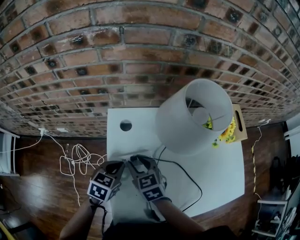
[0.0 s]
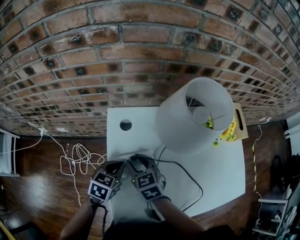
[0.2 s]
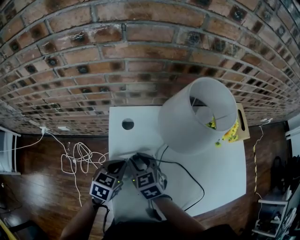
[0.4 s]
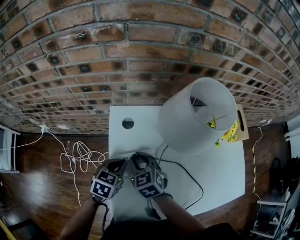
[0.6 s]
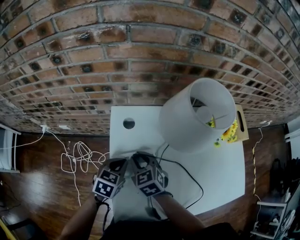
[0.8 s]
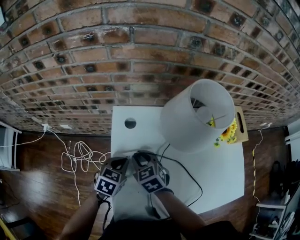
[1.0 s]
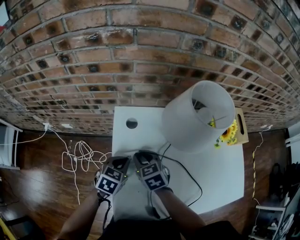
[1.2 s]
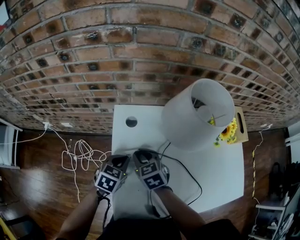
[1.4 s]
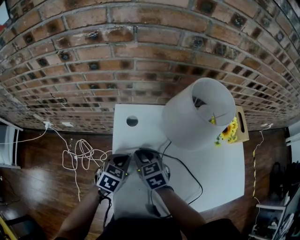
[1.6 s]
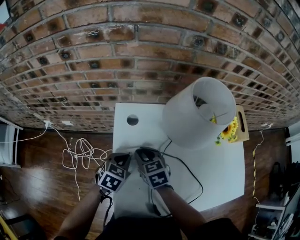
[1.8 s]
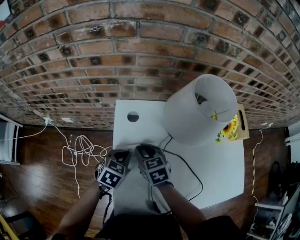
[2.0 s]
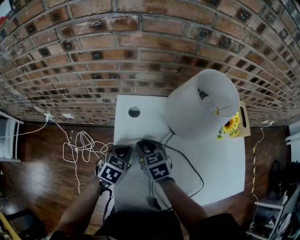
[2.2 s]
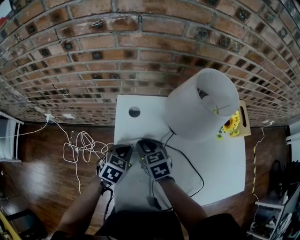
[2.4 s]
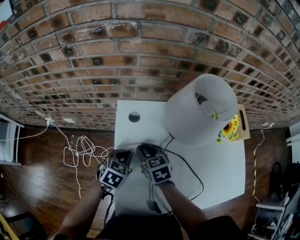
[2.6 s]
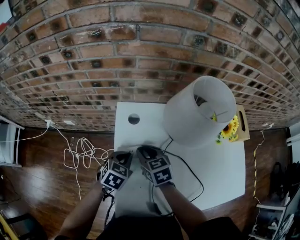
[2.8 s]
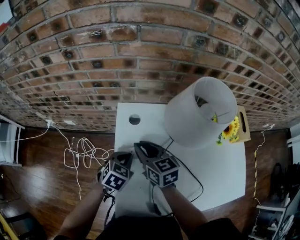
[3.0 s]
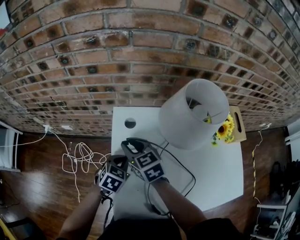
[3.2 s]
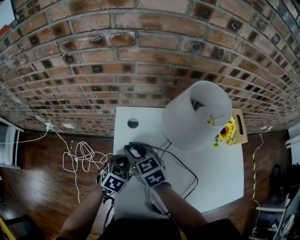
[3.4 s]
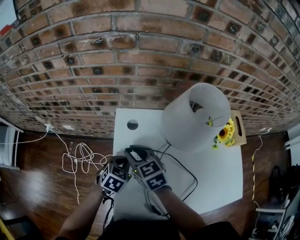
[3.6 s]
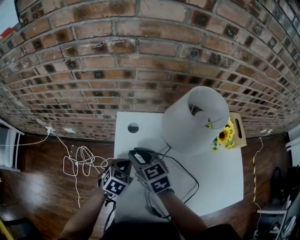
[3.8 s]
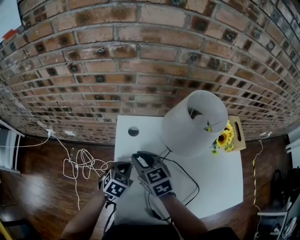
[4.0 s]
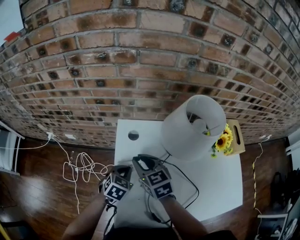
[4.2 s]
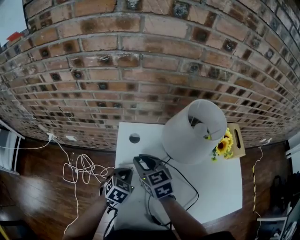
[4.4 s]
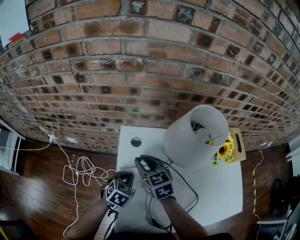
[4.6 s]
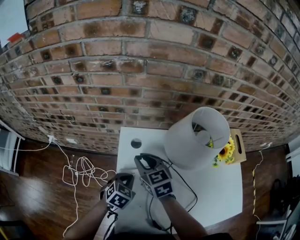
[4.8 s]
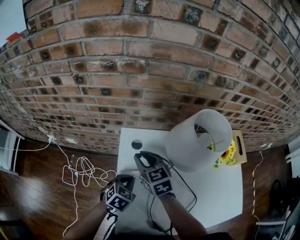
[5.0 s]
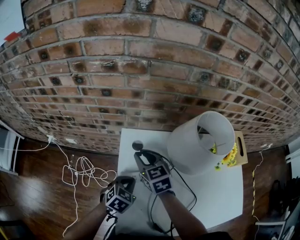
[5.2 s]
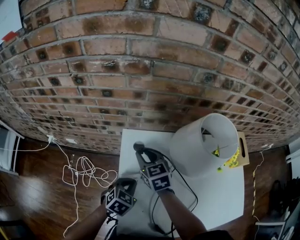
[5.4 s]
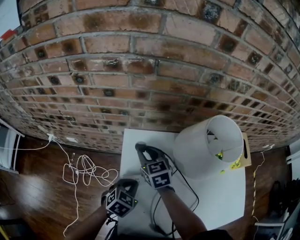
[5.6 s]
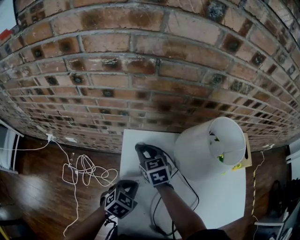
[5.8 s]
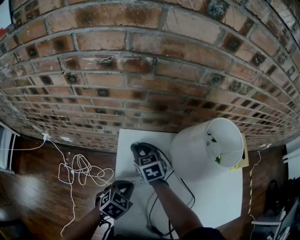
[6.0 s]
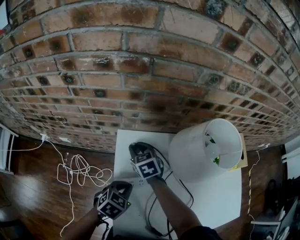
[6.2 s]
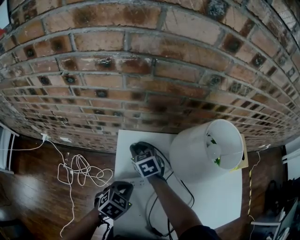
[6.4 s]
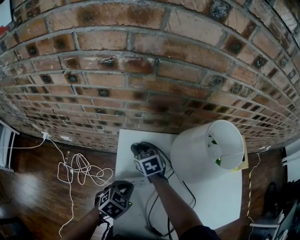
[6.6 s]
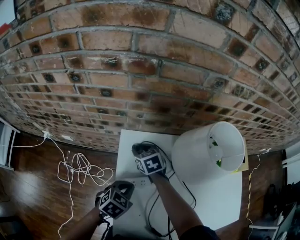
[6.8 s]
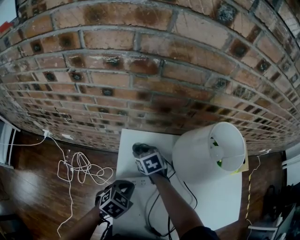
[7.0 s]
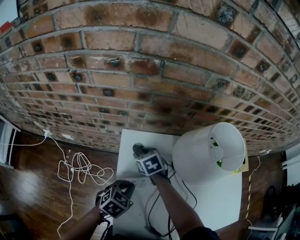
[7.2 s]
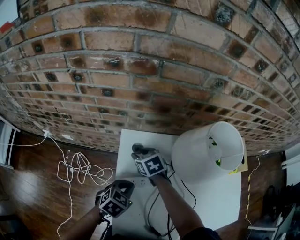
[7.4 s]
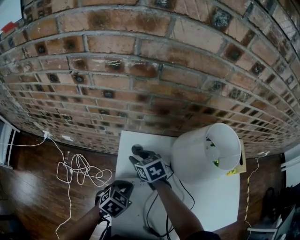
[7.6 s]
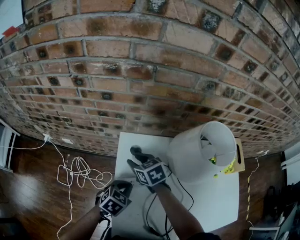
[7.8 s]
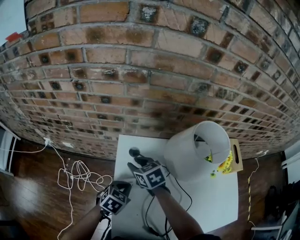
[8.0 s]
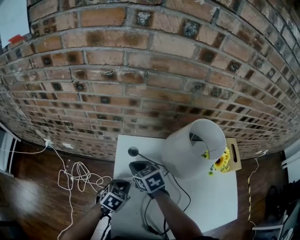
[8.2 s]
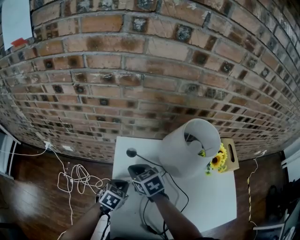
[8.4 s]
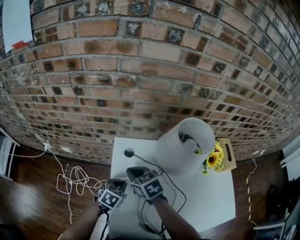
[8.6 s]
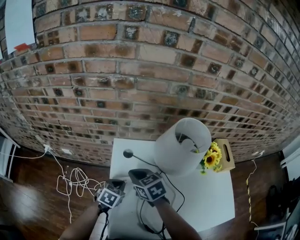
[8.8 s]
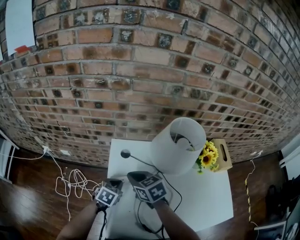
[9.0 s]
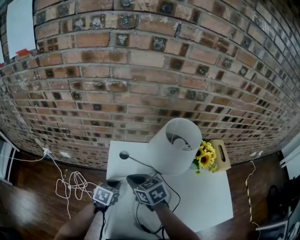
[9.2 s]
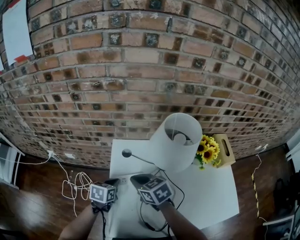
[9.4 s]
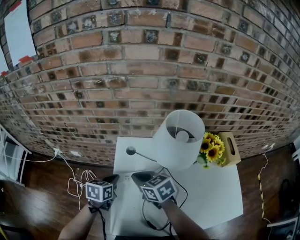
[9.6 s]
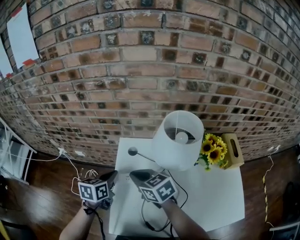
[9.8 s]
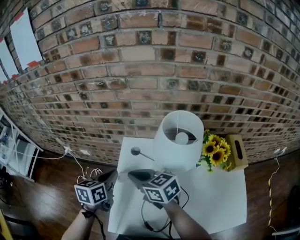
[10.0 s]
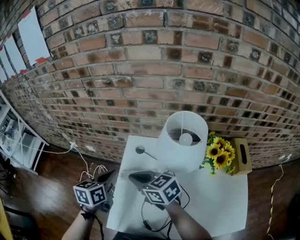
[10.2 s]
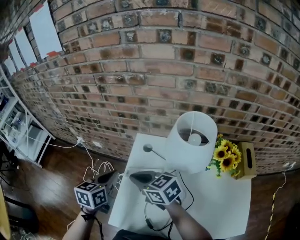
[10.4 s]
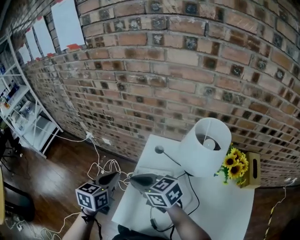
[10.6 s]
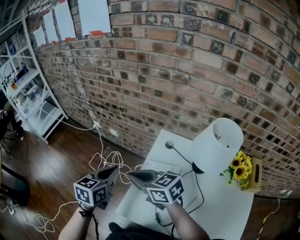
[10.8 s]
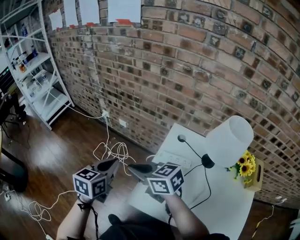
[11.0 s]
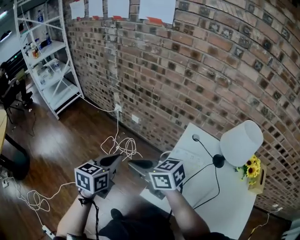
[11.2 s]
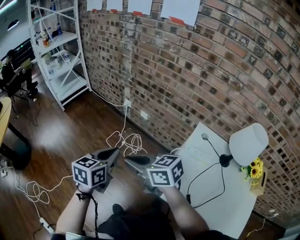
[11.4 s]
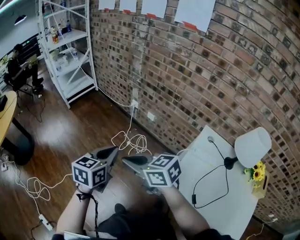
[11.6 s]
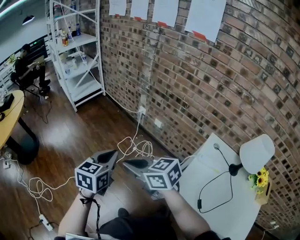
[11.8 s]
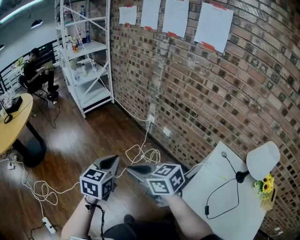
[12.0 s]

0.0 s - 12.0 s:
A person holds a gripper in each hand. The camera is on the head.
0.0 s - 1.6 s: There are only small adjustments of the grippers.
1.6 s - 3.0 s: The right gripper ends up approximately 5 cm from where it was.
3.0 s - 4.4 s: The grippers make only small movements.
4.4 s - 6.0 s: The right gripper goes roughly 15 cm forward and downward.
6.0 s - 7.6 s: The grippers make only small movements.
7.6 s - 9.0 s: The right gripper goes some 15 cm backward and upward, and closes up.
9.0 s - 10.4 s: The right gripper ends up approximately 10 cm from where it was, and rotates approximately 30 degrees, while the left gripper heads upward, covering about 15 cm, and swivels roughly 40 degrees.
10.4 s - 12.0 s: The two grippers travel together, roughly 50 cm. The right gripper turns by about 40 degrees. Meanwhile the left gripper swivels roughly 30 degrees.

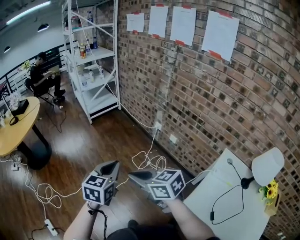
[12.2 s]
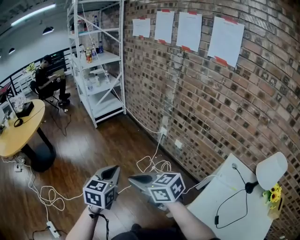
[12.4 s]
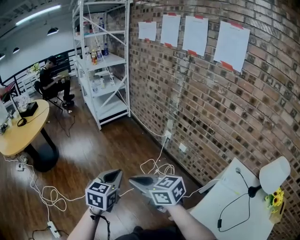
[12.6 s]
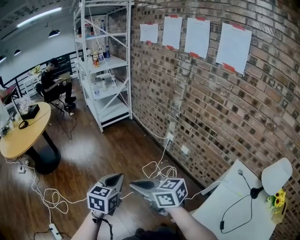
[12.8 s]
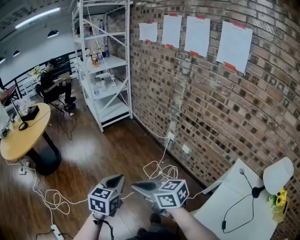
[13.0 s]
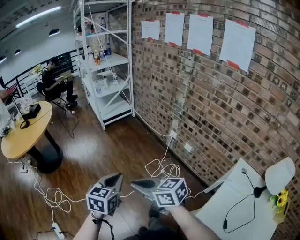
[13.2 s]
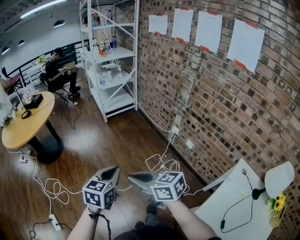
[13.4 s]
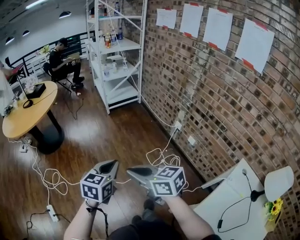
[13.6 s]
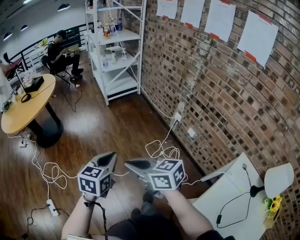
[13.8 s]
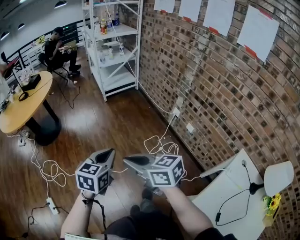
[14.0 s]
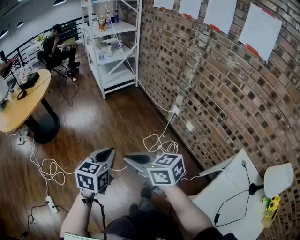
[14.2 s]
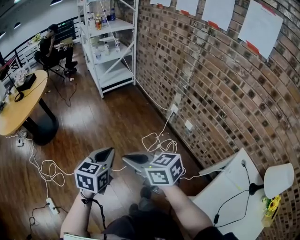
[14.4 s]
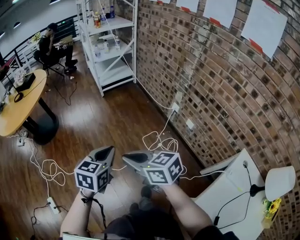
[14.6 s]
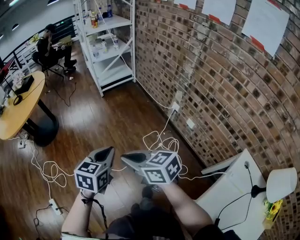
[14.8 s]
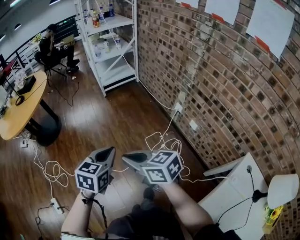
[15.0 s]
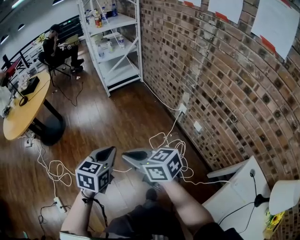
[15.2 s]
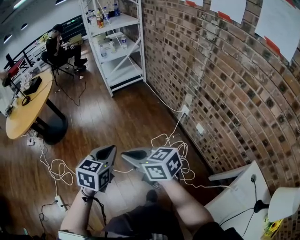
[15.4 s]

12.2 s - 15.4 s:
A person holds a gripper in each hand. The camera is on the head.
12.2 s - 13.8 s: The grippers both shift to the left and forward by about 10 cm.
13.8 s - 15.4 s: The right gripper moves forward and to the right, approximately 15 cm. Meanwhile the left gripper shifts roughly 15 cm to the right and forward.

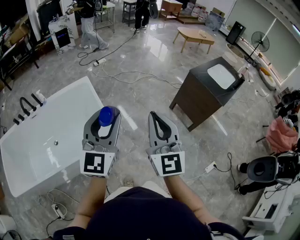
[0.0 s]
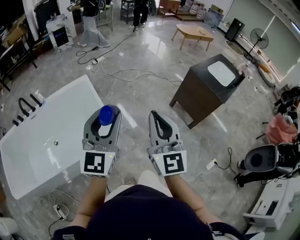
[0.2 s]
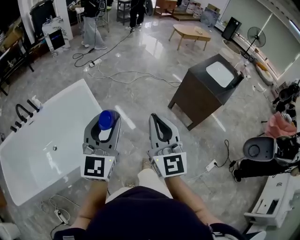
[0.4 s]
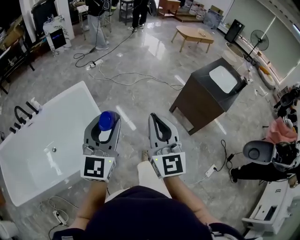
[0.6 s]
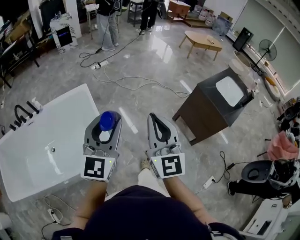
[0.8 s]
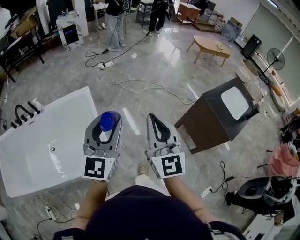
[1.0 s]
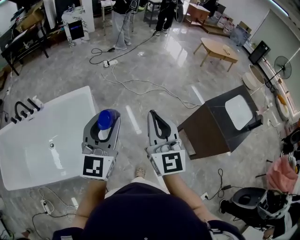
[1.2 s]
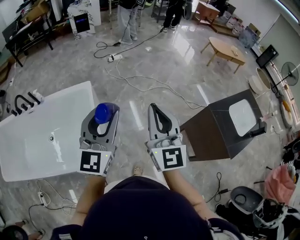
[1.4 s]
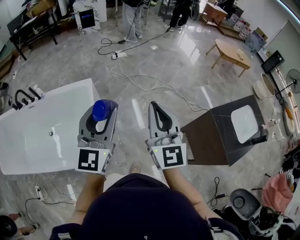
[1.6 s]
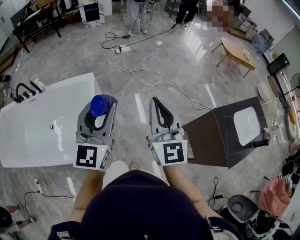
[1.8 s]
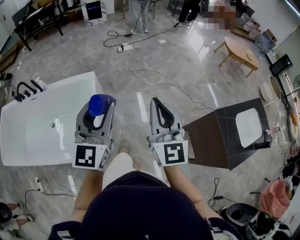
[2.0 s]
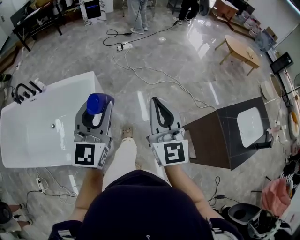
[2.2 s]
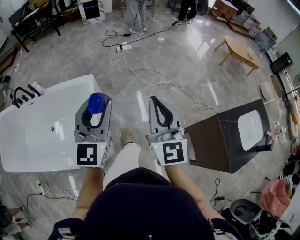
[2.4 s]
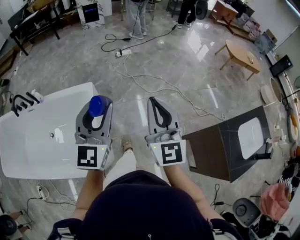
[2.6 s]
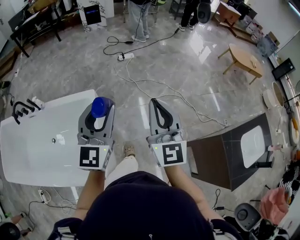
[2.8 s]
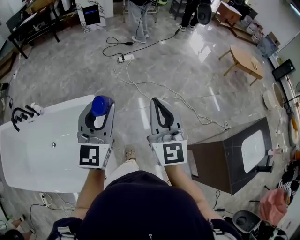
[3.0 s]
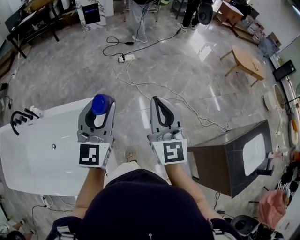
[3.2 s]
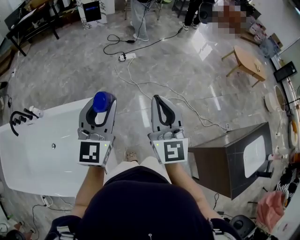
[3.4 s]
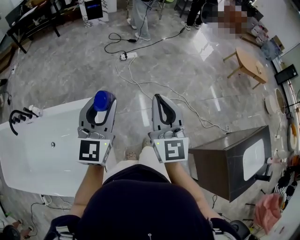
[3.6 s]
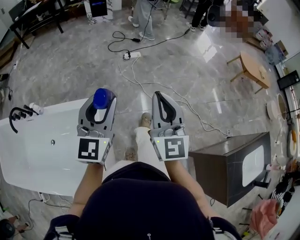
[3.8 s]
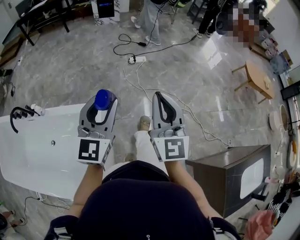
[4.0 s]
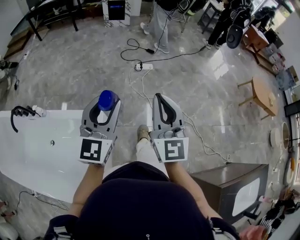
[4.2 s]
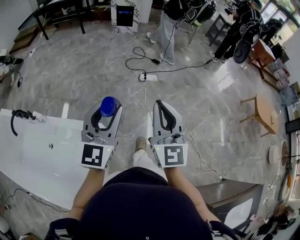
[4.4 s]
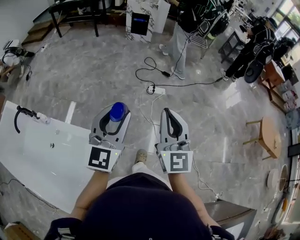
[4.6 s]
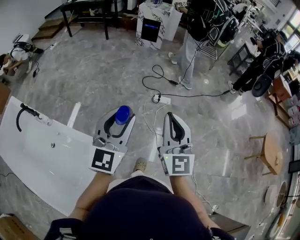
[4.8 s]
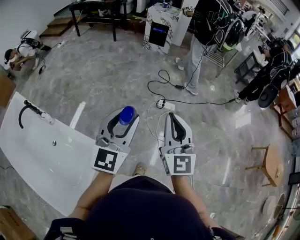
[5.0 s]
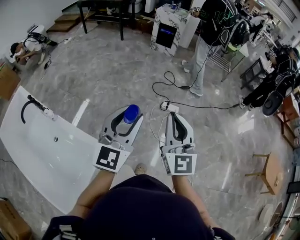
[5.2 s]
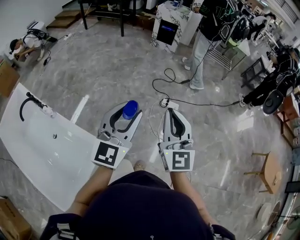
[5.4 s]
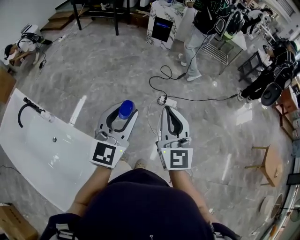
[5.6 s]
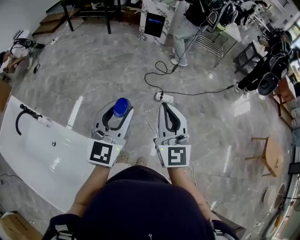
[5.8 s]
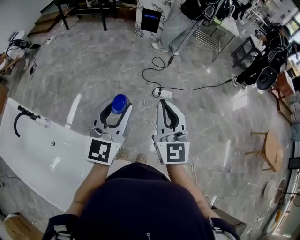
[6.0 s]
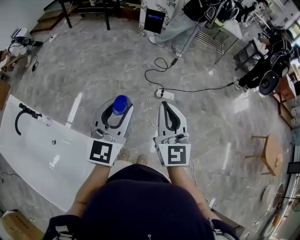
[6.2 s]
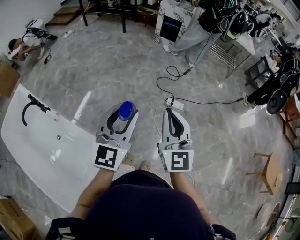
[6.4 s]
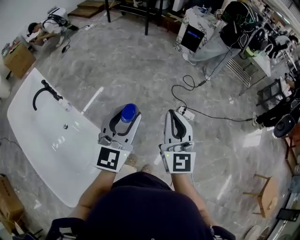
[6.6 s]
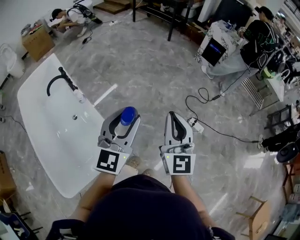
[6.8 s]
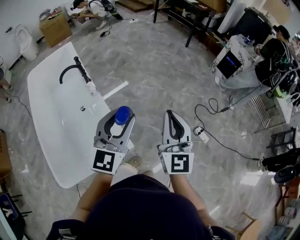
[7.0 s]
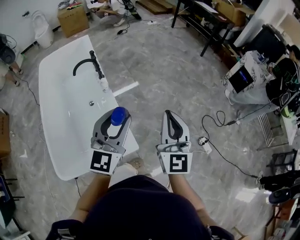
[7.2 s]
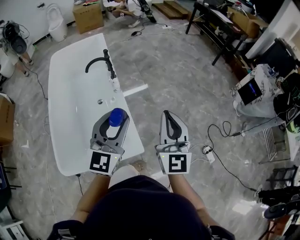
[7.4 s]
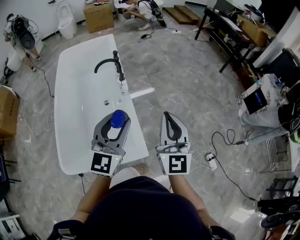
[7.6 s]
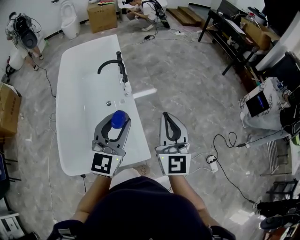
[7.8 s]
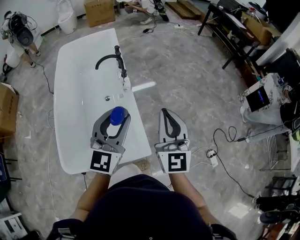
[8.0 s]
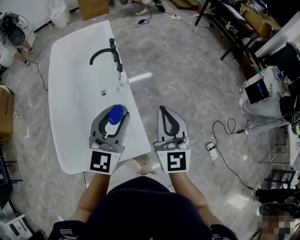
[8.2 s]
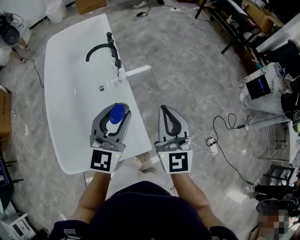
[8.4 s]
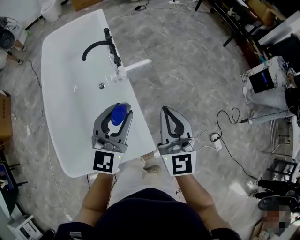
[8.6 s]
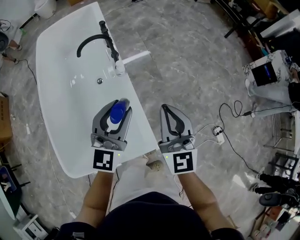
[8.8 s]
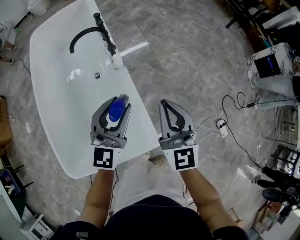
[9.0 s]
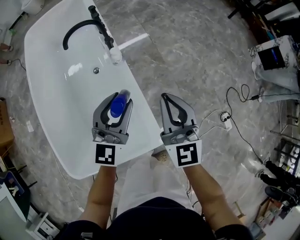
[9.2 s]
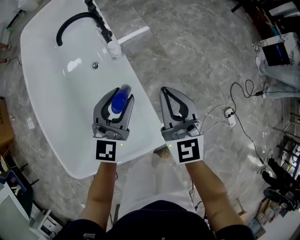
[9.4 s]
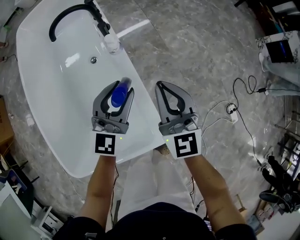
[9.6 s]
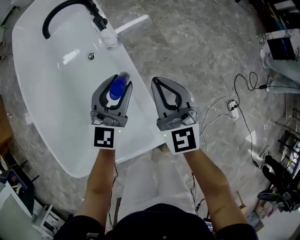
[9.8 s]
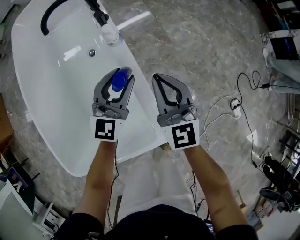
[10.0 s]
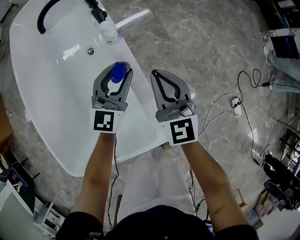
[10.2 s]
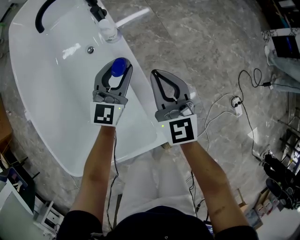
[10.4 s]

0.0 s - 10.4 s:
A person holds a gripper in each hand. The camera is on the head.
0.0 s - 1.4 s: The grippers both shift forward by some 35 cm.
1.4 s - 3.0 s: The grippers both shift forward by some 30 cm.
3.0 s - 4.4 s: Both grippers move forward, approximately 35 cm.
4.4 s - 6.0 s: The grippers both shift forward by about 25 cm.
6.0 s - 7.4 s: The right gripper moves about 35 cm, and rotates roughly 50 degrees; the left gripper changes place by approximately 35 cm, and changes its angle by about 50 degrees.
7.4 s - 9.0 s: The right gripper shifts roughly 25 cm downward, forward and to the left; the left gripper moves forward, downward and to the left, approximately 25 cm.
9.0 s - 10.4 s: The left gripper moves downward and forward, about 25 cm. Meanwhile the right gripper goes about 20 cm downward.
